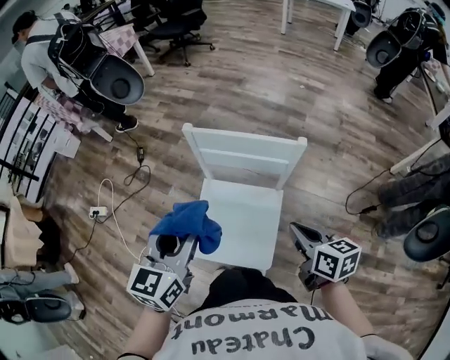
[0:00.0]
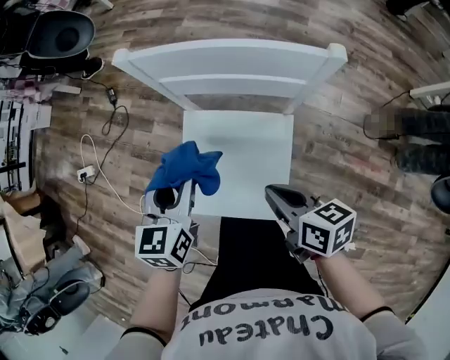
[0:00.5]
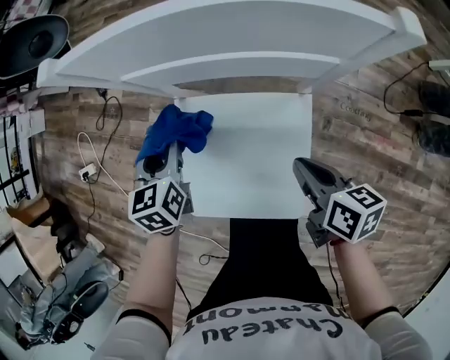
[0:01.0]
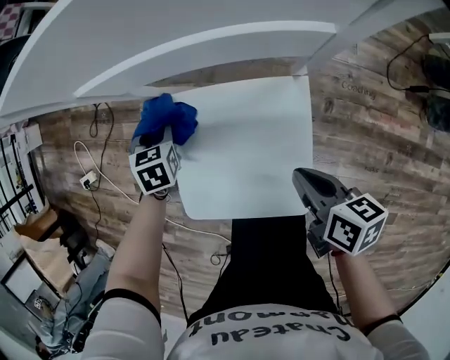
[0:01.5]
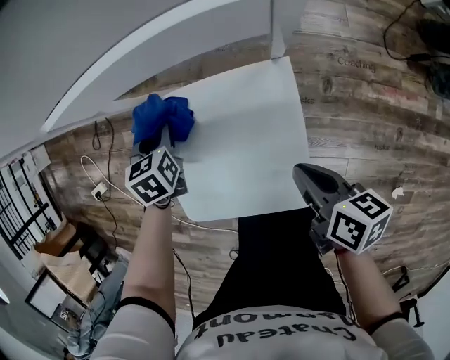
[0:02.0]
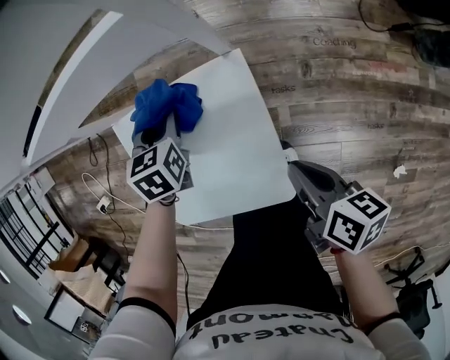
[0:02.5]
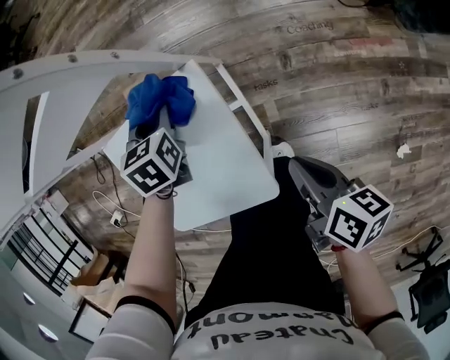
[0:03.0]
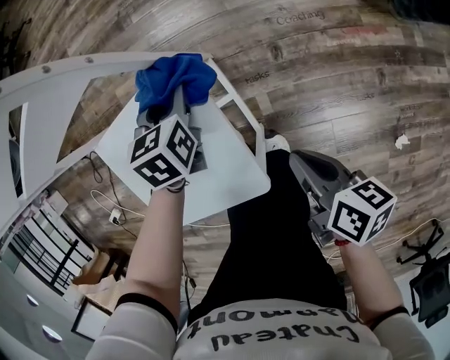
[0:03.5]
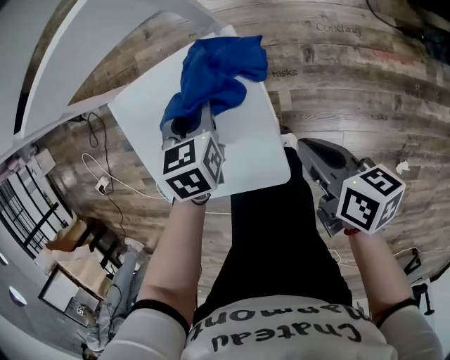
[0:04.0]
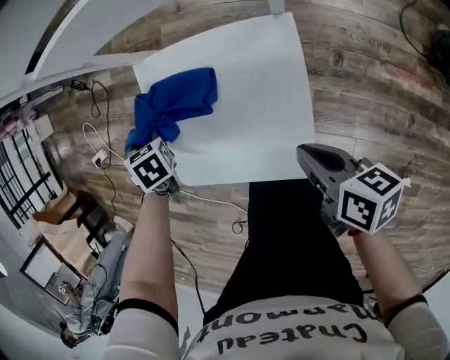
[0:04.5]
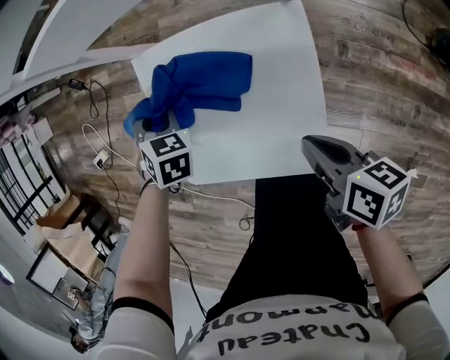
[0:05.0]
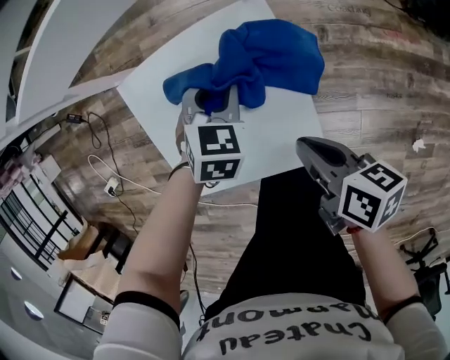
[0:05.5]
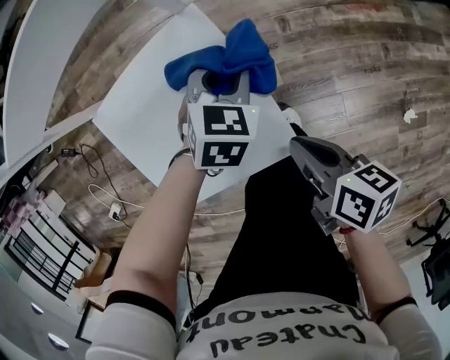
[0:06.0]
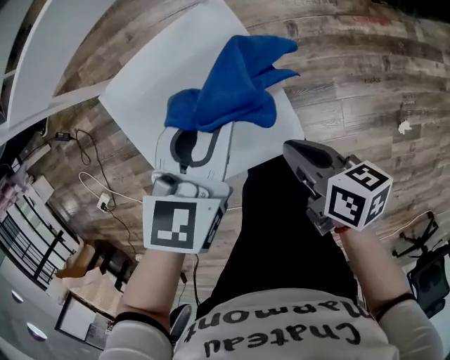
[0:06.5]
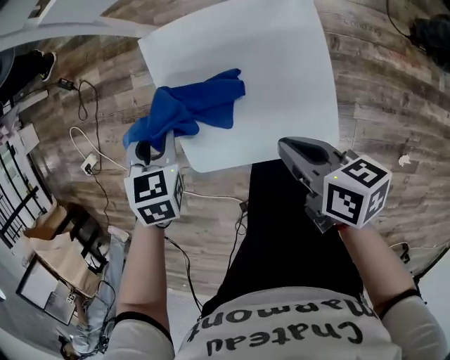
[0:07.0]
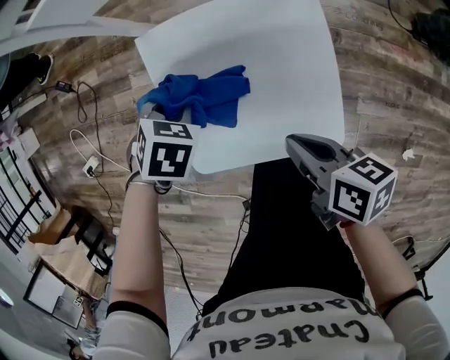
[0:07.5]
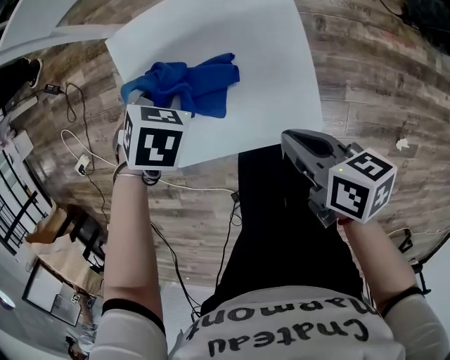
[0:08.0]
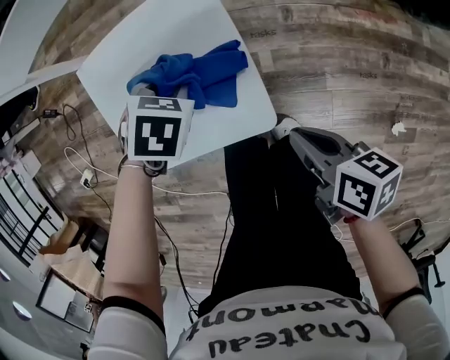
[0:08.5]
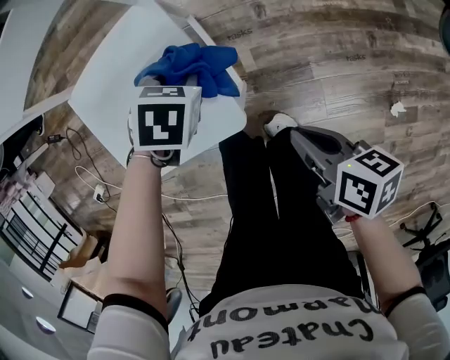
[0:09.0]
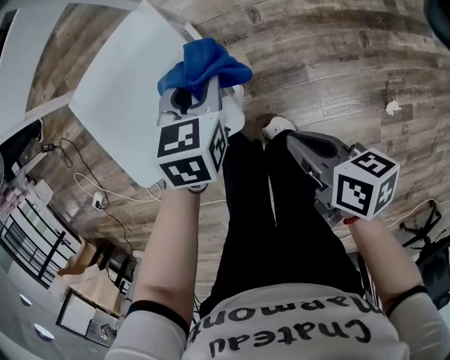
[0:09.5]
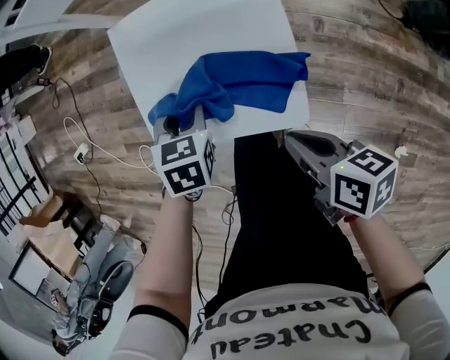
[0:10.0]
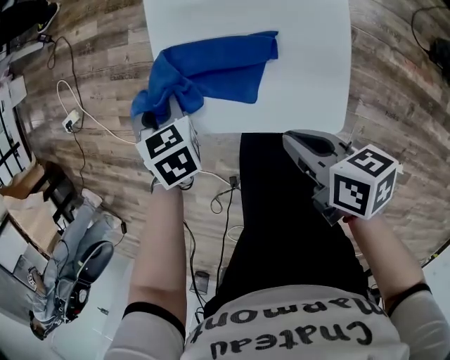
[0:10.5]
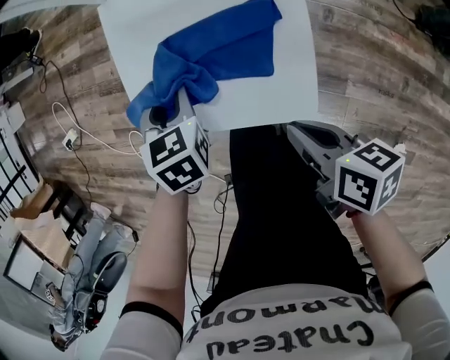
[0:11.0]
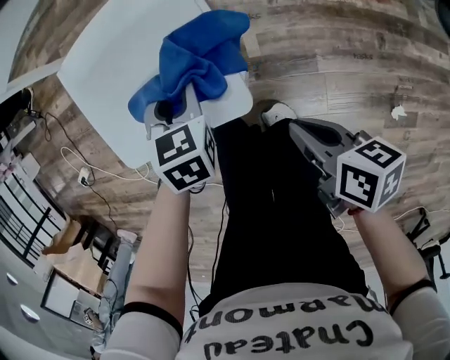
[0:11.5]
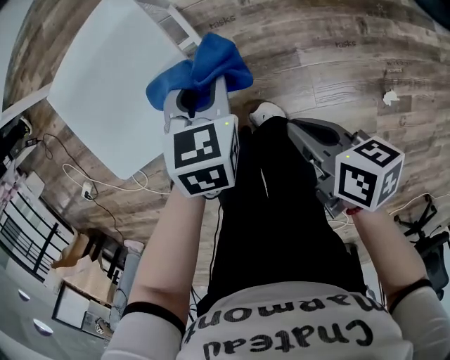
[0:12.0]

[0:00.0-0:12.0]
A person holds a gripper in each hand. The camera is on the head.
0:00.0 to 0:02.0: The right gripper travels downward by some 30 cm, and turns by some 30 degrees, while the left gripper shifts approximately 50 cm downward, and points its fingers some 40 degrees further downward.
0:02.0 to 0:04.0: The right gripper shifts approximately 10 cm to the right and backward. The left gripper heads to the right and backward, covering about 20 cm.
0:04.0 to 0:06.0: The right gripper moves some 10 cm, while the left gripper changes its angle by about 40 degrees.
0:06.0 to 0:08.0: The right gripper rotates approximately 20 degrees. The left gripper moves approximately 15 cm upward and comes back, and rotates some 30 degrees.
0:08.0 to 0:10.0: The left gripper rotates roughly 30 degrees.
0:10.0 to 0:12.0: The right gripper ends up approximately 15 cm from where it was, while the left gripper shifts by about 25 cm, and swivels approximately 20 degrees.

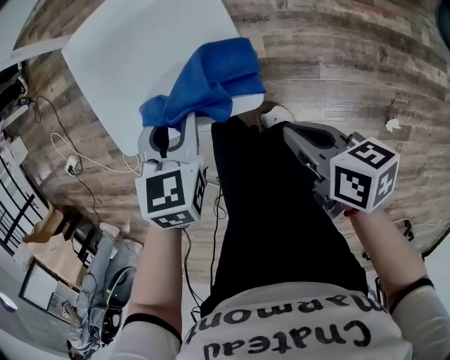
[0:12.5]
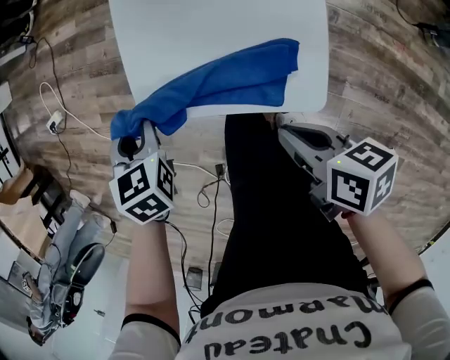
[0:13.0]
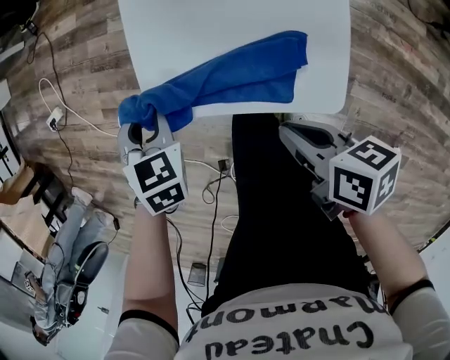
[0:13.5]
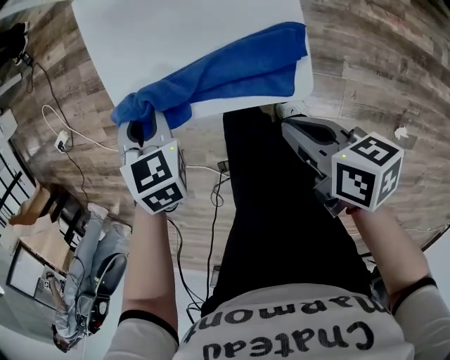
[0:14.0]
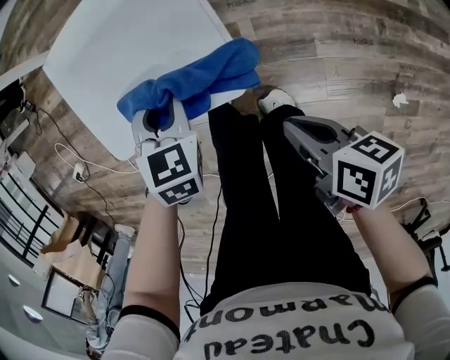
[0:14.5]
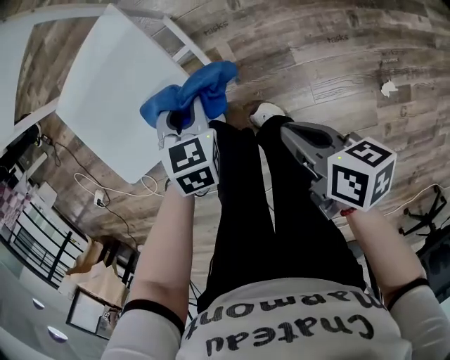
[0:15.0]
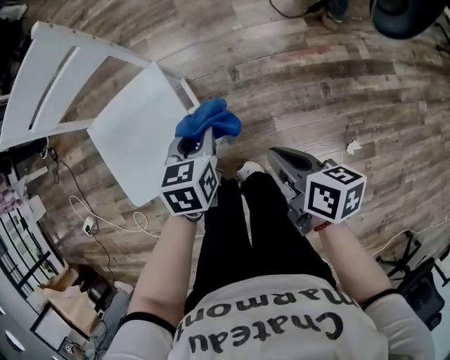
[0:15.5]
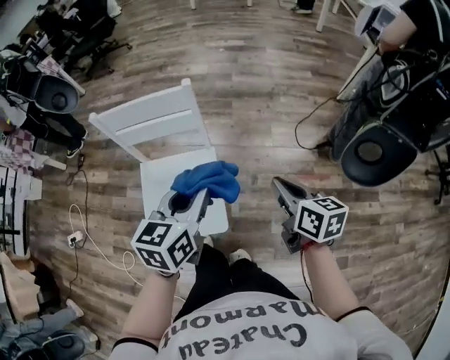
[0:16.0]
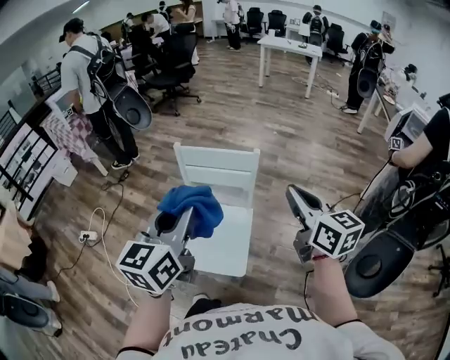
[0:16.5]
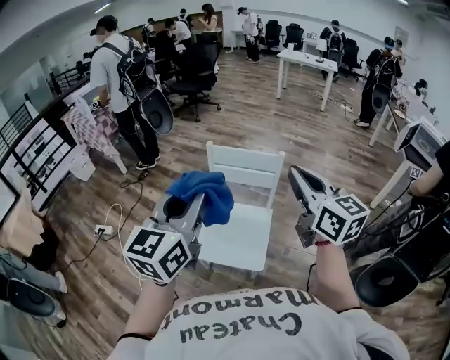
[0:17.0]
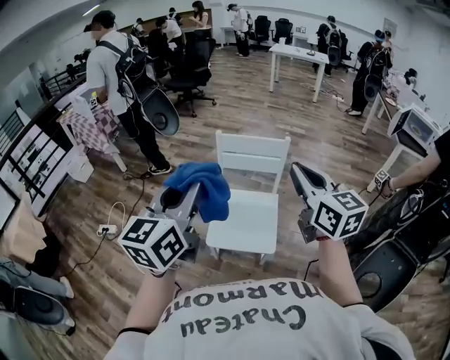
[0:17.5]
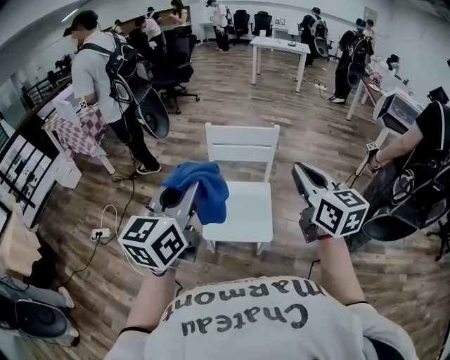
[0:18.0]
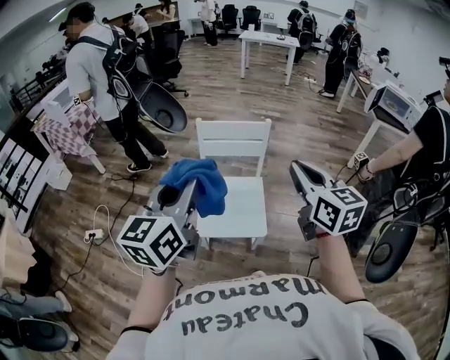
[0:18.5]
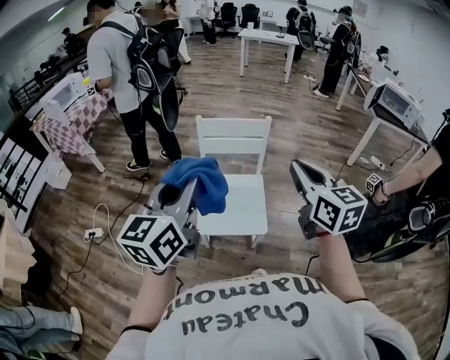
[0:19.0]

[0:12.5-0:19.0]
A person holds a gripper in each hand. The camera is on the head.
0:12.5 to 0:14.5: The left gripper travels downward by roughly 5 cm.
0:14.5 to 0:17.0: The two grippers go roughly 70 cm upward. The left gripper angles its fingers upward, by some 60 degrees; the right gripper twists some 60 degrees counterclockwise, seen from behind.
0:17.0 to 0:19.0: The left gripper travels to the left and backward by approximately 10 cm. Meanwhile the right gripper goes about 10 cm backward.

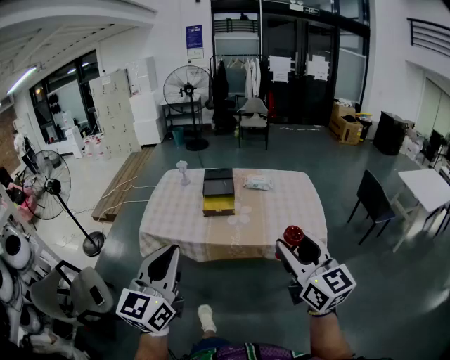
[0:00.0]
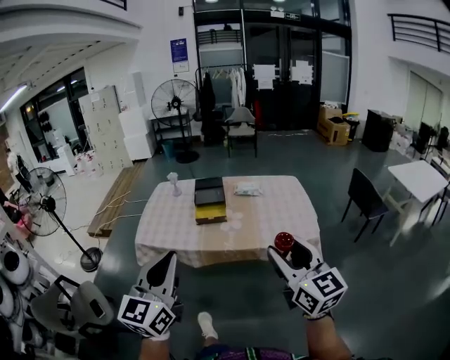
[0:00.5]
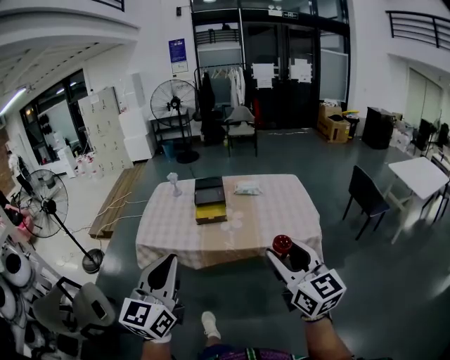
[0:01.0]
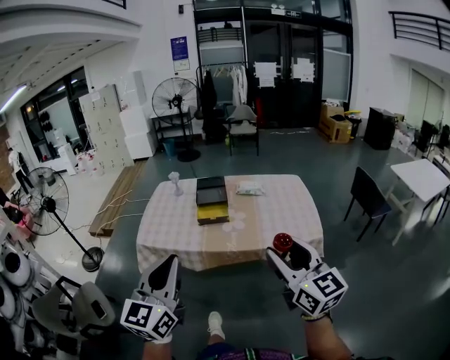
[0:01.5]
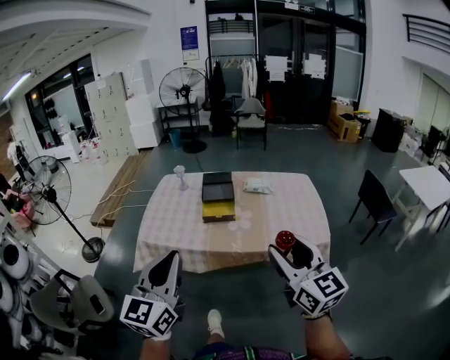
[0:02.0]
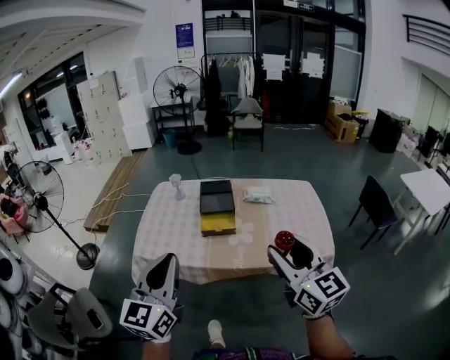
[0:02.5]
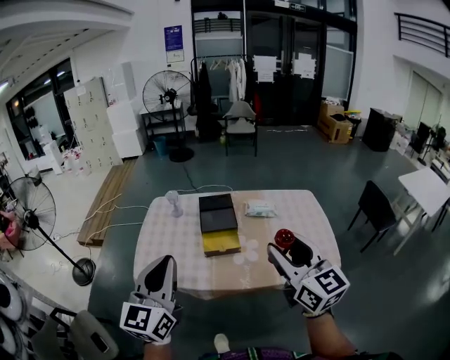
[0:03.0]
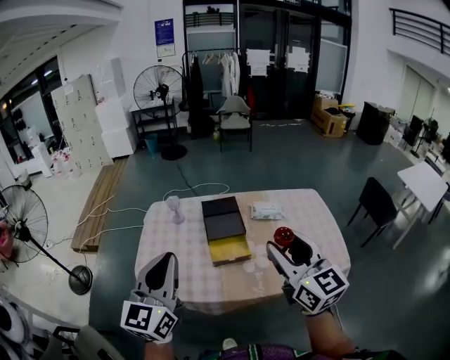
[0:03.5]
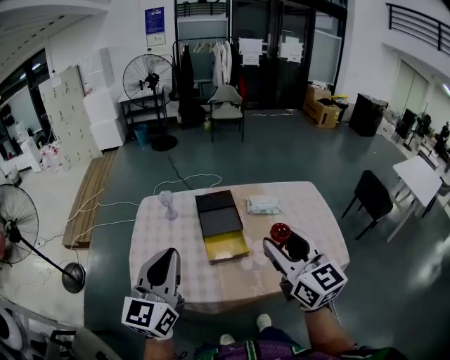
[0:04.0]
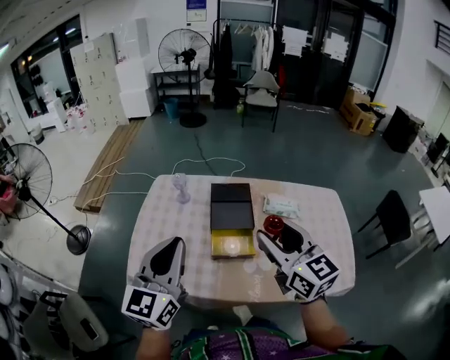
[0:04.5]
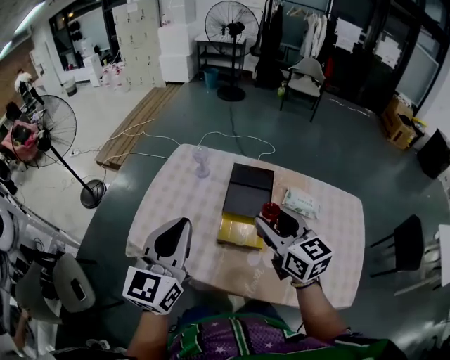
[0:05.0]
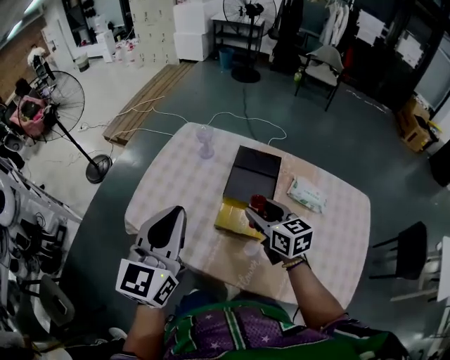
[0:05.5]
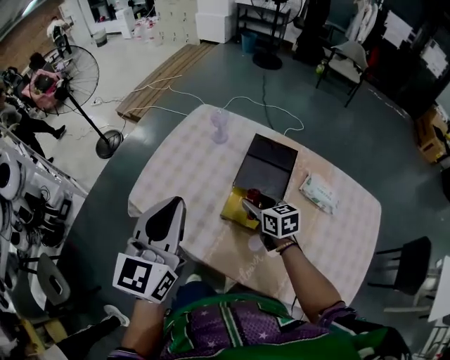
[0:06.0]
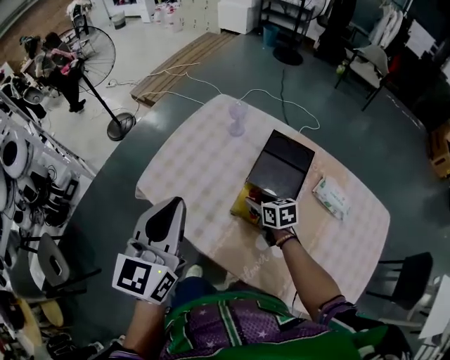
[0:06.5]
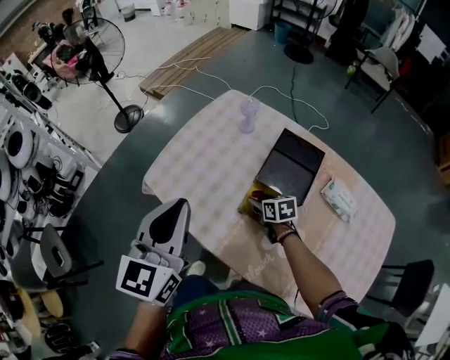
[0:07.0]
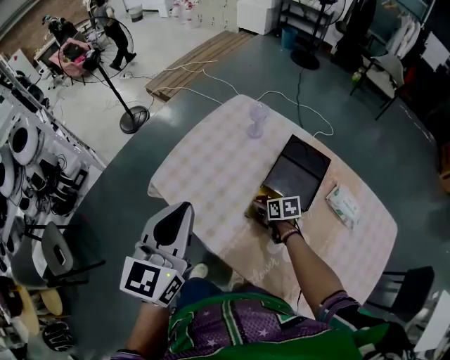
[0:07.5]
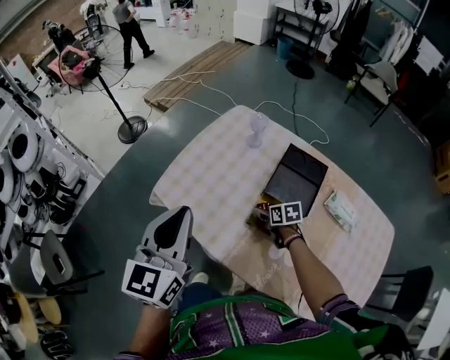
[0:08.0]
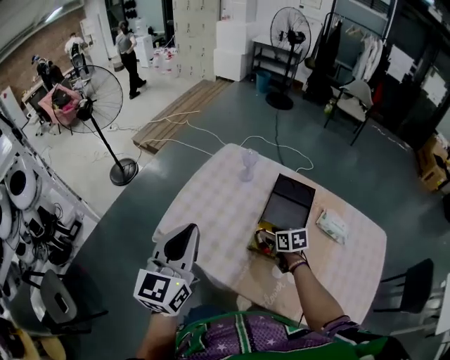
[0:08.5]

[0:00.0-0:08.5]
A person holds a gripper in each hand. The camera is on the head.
0:00.0 to 0:02.0: There are only small adjustments of the grippers.
0:02.0 to 0:04.0: The grippers both shift forward by approximately 40 cm.
0:04.0 to 0:06.5: The left gripper is displaced downward by roughly 10 cm, and changes its angle by some 40 degrees, while the right gripper shifts about 40 cm downward, and tips its fingers downward by about 40 degrees.
0:06.5 to 0:08.5: The left gripper shifts approximately 5 cm to the left.
